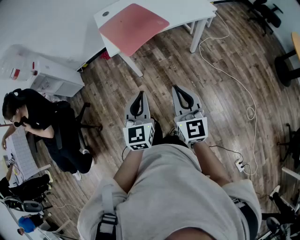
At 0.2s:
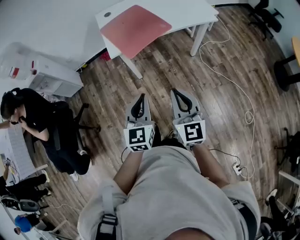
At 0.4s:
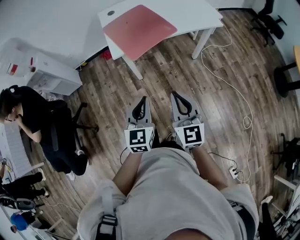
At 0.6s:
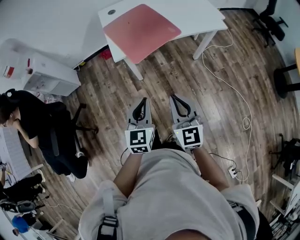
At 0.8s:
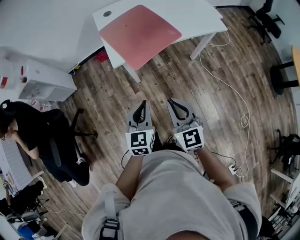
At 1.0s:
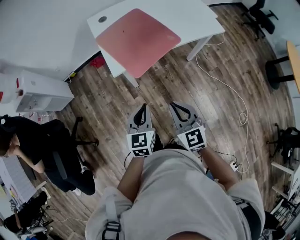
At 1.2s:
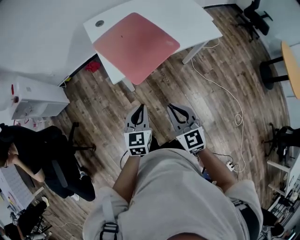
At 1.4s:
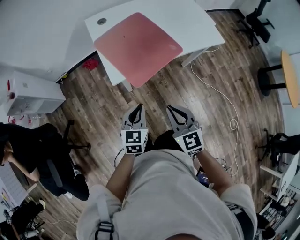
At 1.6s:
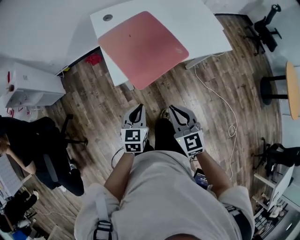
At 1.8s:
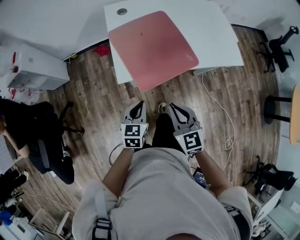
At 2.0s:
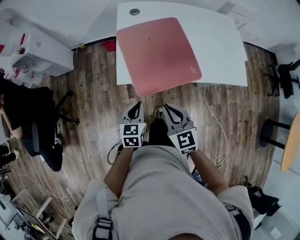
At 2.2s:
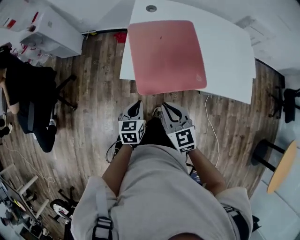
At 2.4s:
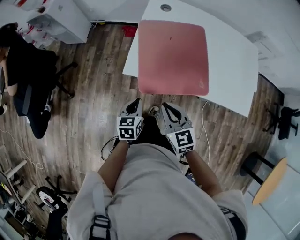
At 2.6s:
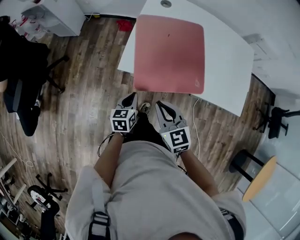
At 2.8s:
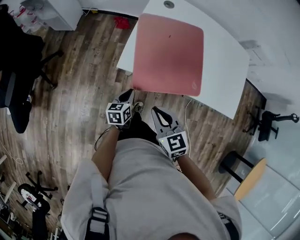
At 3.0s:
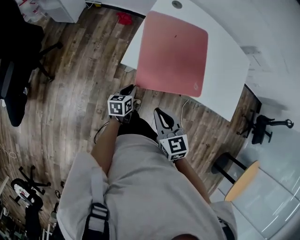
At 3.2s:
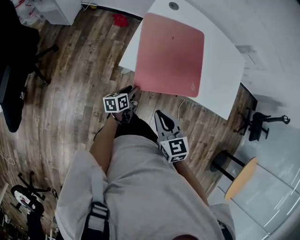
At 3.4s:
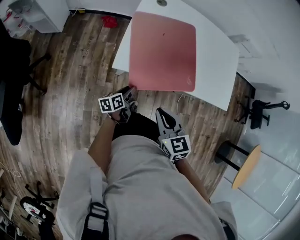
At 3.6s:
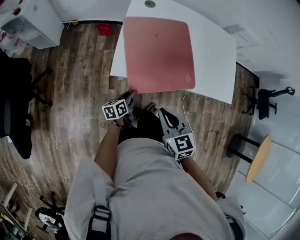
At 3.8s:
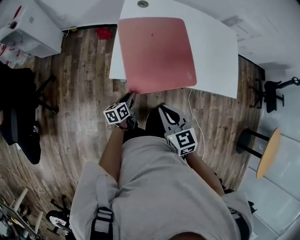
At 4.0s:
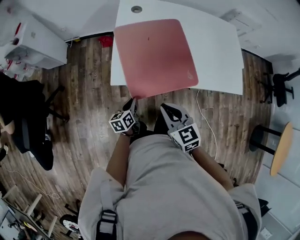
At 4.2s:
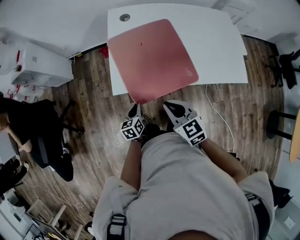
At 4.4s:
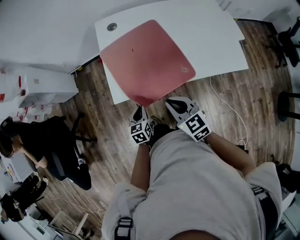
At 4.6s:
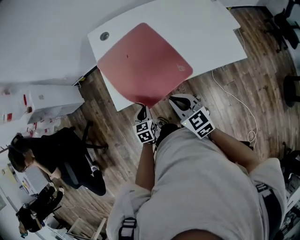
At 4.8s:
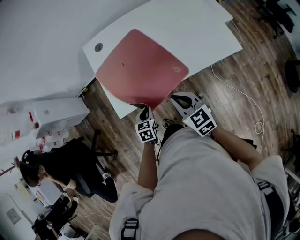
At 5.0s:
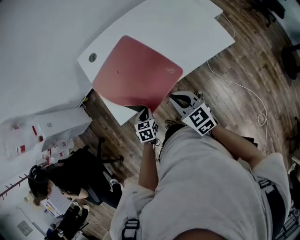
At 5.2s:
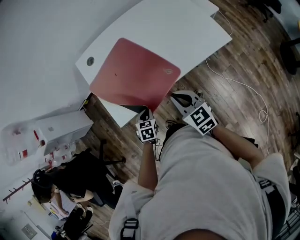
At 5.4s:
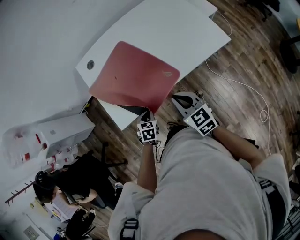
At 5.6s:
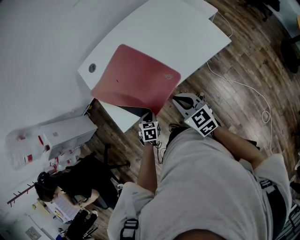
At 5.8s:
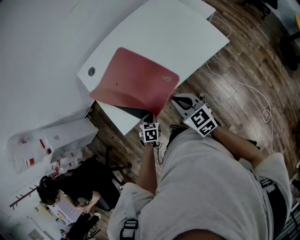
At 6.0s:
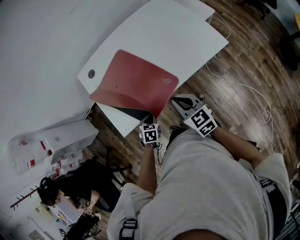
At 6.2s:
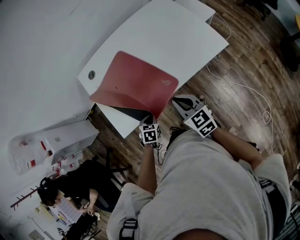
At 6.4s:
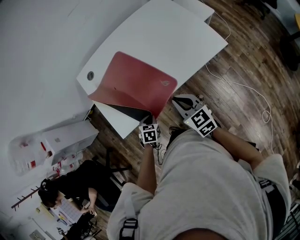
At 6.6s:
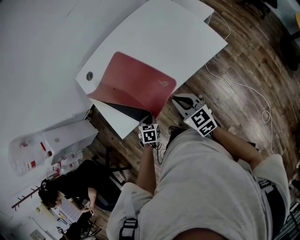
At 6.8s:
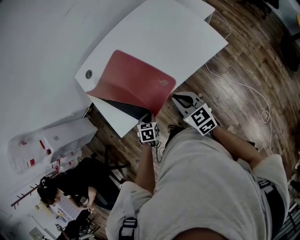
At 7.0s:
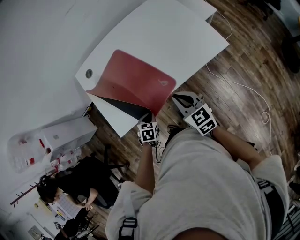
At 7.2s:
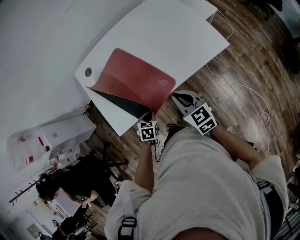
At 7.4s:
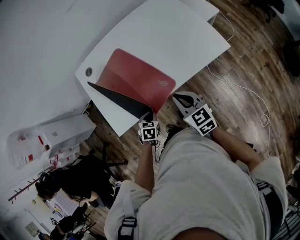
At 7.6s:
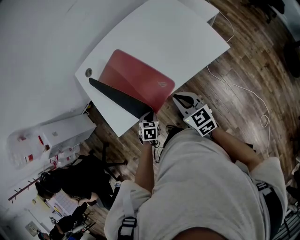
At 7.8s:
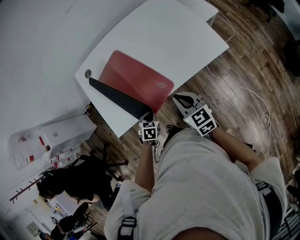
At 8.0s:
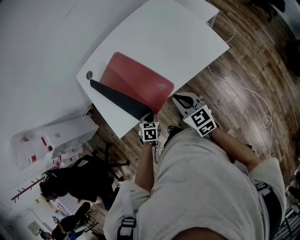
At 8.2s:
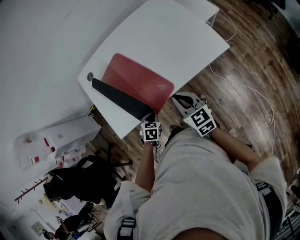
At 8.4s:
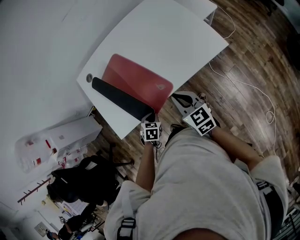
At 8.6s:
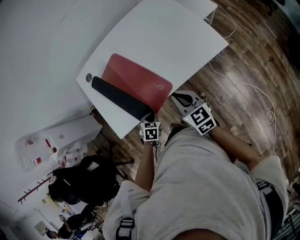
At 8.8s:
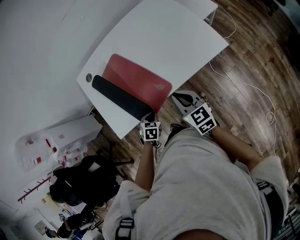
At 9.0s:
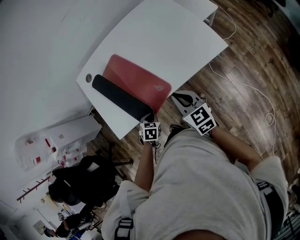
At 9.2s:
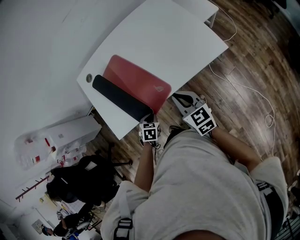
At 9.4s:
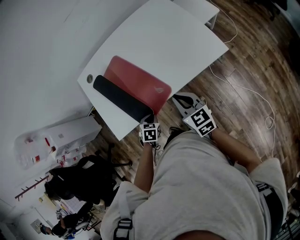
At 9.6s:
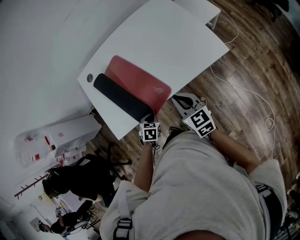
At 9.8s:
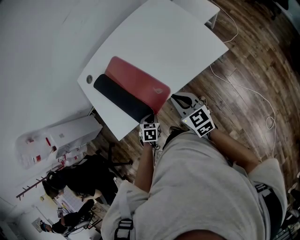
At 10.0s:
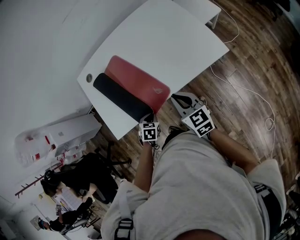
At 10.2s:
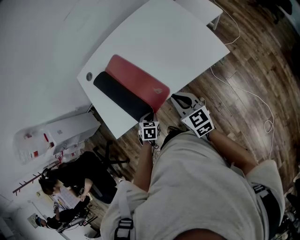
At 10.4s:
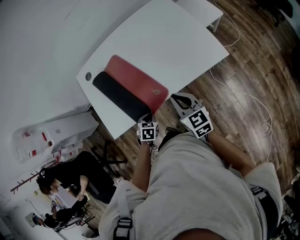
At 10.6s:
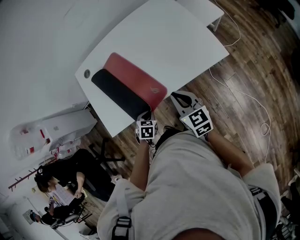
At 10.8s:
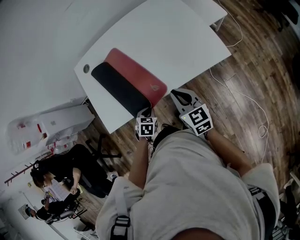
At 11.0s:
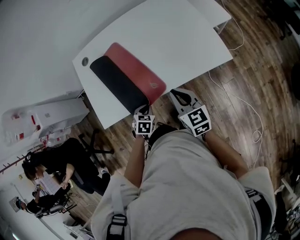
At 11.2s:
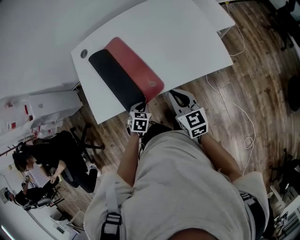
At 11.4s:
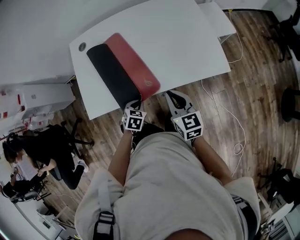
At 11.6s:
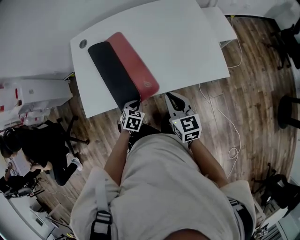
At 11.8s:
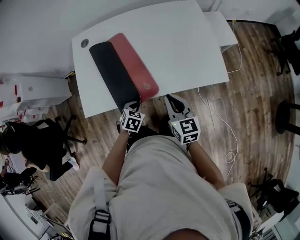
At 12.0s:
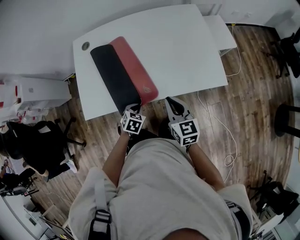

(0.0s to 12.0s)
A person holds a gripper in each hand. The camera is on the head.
0.0s - 1.6s: The right gripper heads forward and to the left, covering about 30 cm, and changes its angle by approximately 30 degrees. Meanwhile the left gripper moves forward, downward and to the left, approximately 30 cm, and changes its angle by some 20 degrees.
1.6s - 3.0s: The right gripper ends up roughly 10 cm from where it was, and swivels approximately 30 degrees. The left gripper moves downward, approximately 15 cm, and rotates around the line of its fingers by about 40 degrees, counterclockwise from behind.
3.0s - 4.4s: The left gripper moves roughly 5 cm, swivels about 30 degrees, and opens and closes again. Meanwhile the right gripper is displaced to the right and forward by roughly 10 cm.
4.4s - 6.0s: Both grippers move to the right, roughly 10 cm. The left gripper turns by roughly 40 degrees. Meanwhile the right gripper turns by some 20 degrees.
6.0s - 7.6s: The right gripper ends up approximately 5 cm from where it was. Meanwhile the left gripper shifts approximately 5 cm to the right.
7.6s - 9.0s: The grippers make only small movements.
9.0s - 10.4s: There are only small adjustments of the grippers.
10.4s - 12.0s: The grippers move only a little.

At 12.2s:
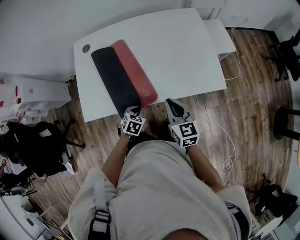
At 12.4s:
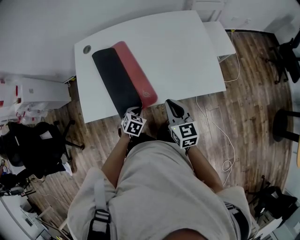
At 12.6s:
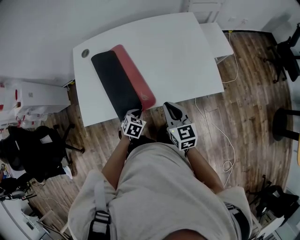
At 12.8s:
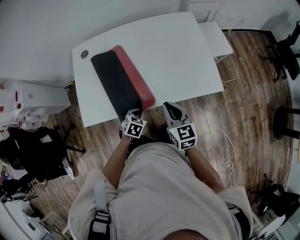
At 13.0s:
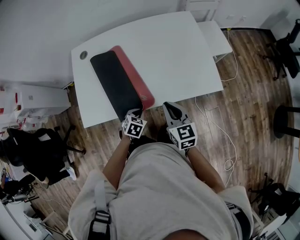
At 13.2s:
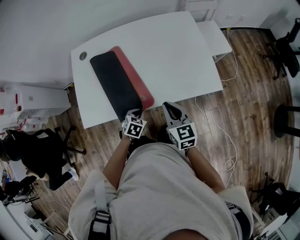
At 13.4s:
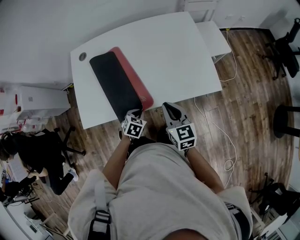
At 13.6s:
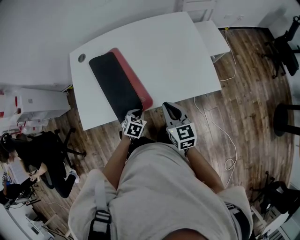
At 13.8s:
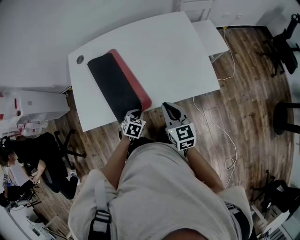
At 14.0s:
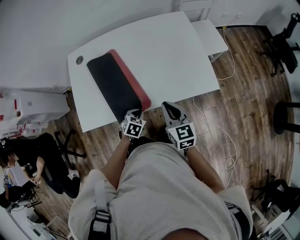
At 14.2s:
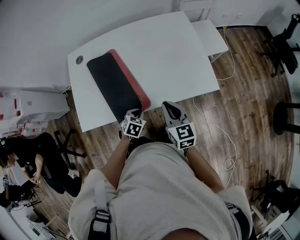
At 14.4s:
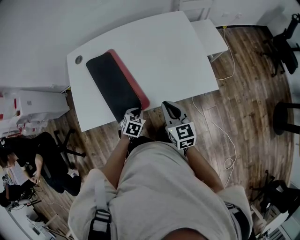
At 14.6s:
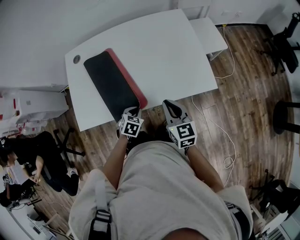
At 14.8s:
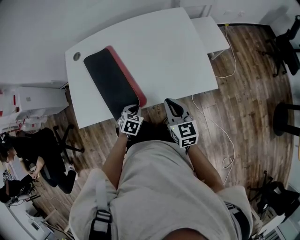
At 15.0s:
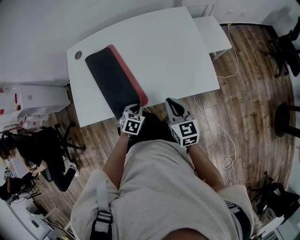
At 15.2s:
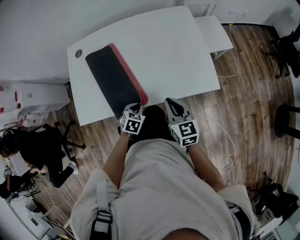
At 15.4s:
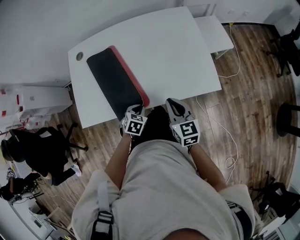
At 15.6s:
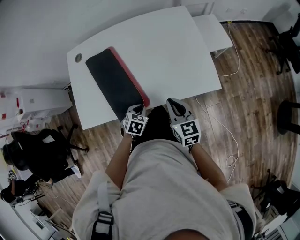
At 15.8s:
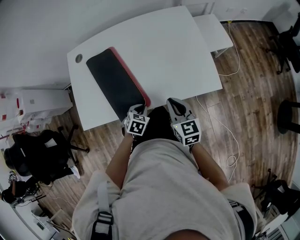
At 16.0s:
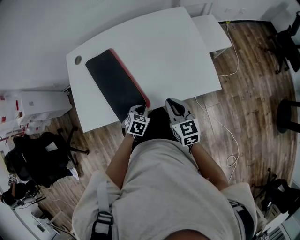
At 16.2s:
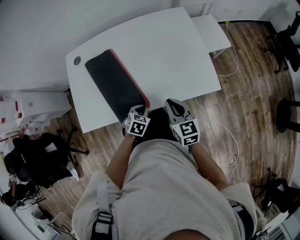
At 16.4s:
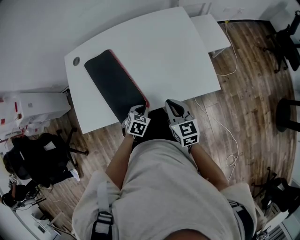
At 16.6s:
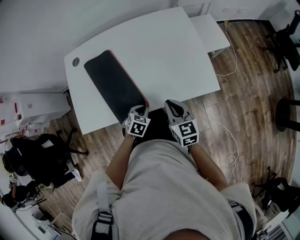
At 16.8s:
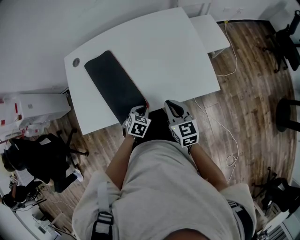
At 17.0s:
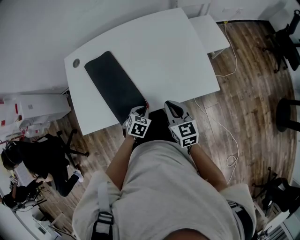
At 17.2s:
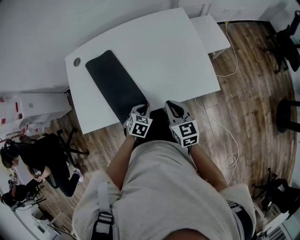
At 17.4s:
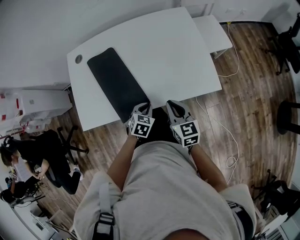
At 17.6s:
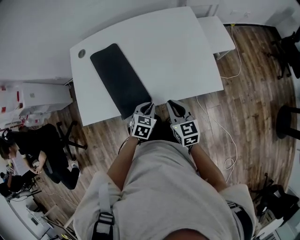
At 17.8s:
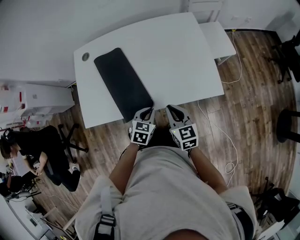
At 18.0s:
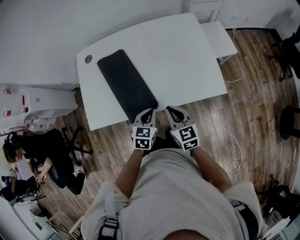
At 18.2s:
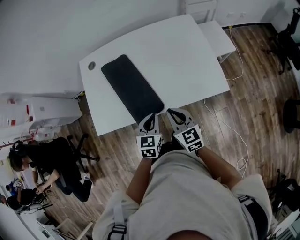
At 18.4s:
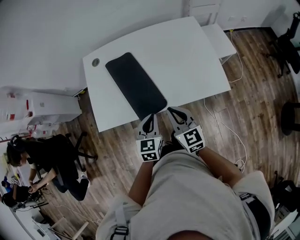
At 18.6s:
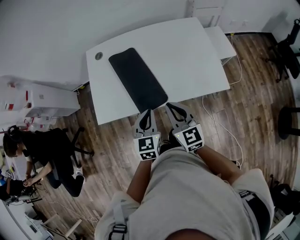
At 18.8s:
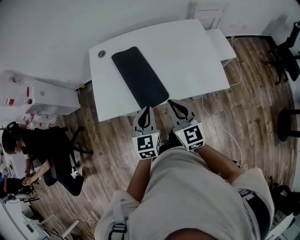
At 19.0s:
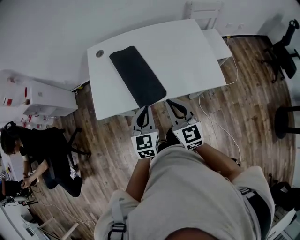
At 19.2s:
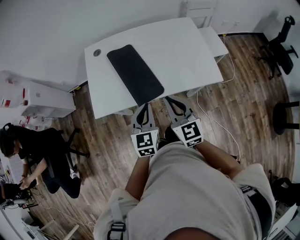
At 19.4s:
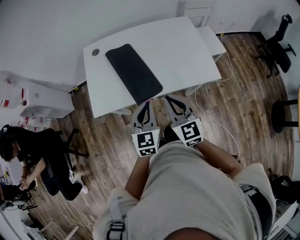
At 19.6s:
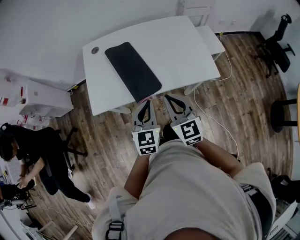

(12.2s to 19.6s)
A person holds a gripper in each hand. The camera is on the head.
12.2s - 13.6s: The grippers stay close to where they were, moving slightly.
13.6s - 16.6s: There are only small adjustments of the grippers.
16.6s - 18.2s: The left gripper moves upward, about 15 cm, and swivels about 30 degrees, while the right gripper travels to the left by about 10 cm.
18.2s - 19.6s: The two grippers go roughly 15 cm upward, backward and to the left.

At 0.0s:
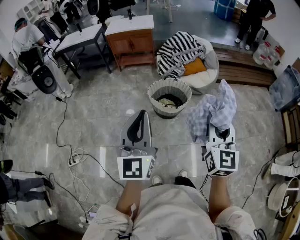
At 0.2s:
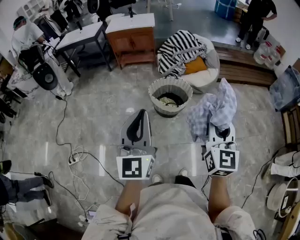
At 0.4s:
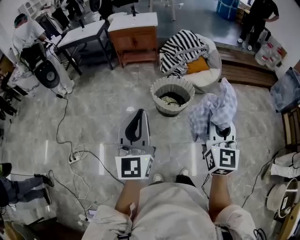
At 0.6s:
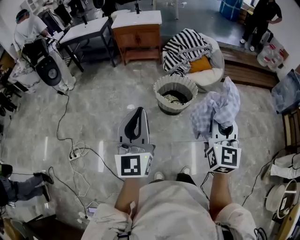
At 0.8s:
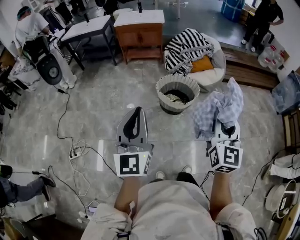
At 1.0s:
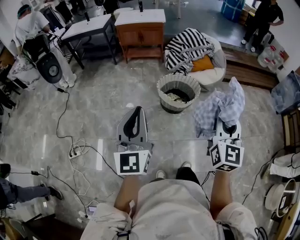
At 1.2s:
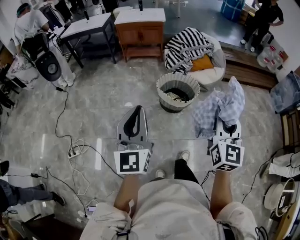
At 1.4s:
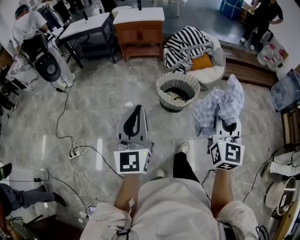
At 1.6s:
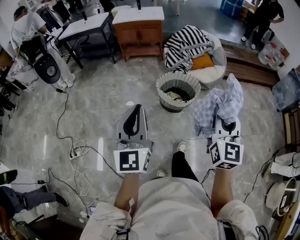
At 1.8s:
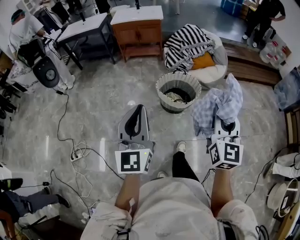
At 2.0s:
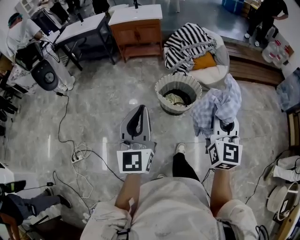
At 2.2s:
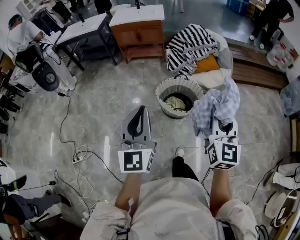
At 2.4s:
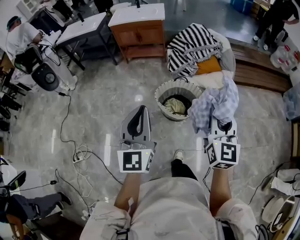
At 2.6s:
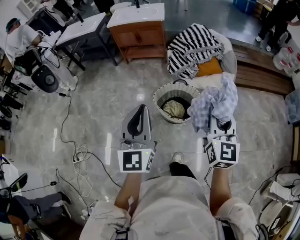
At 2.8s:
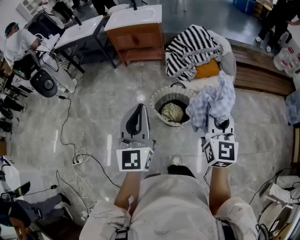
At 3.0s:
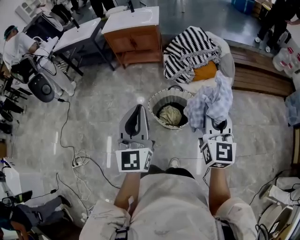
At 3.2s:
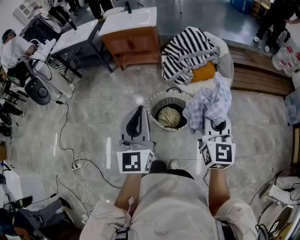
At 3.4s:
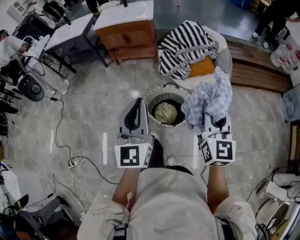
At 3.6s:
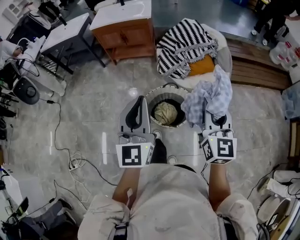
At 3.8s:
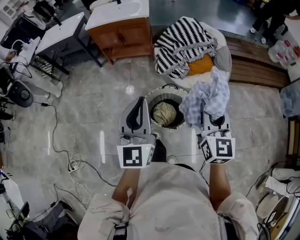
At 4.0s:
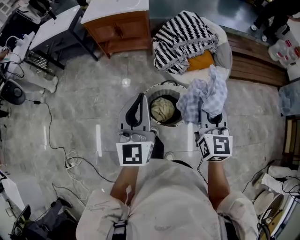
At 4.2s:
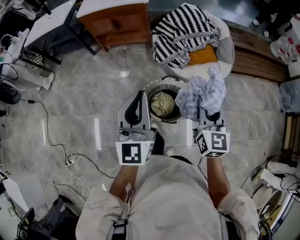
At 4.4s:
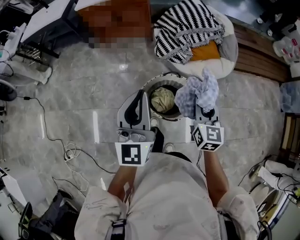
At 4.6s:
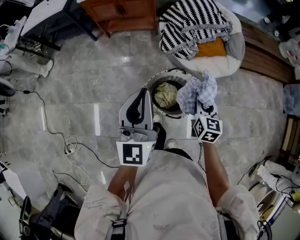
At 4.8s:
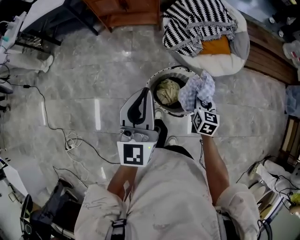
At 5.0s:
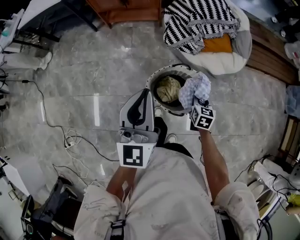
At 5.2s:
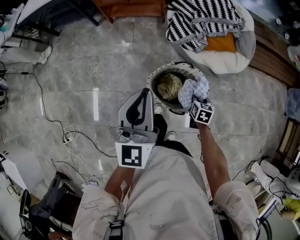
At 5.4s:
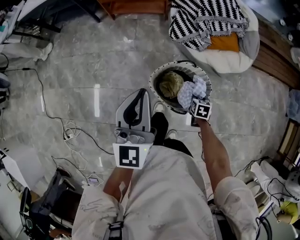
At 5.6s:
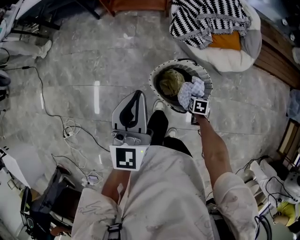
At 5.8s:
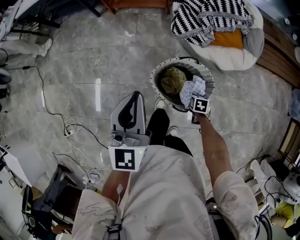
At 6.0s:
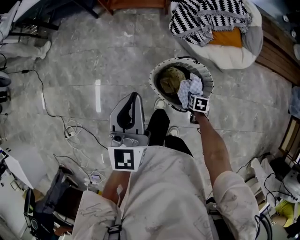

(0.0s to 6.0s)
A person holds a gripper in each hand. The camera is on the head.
0.0s - 1.6s: Both grippers move to the left, roughly 10 cm.
1.6s - 3.0s: The left gripper heads forward and to the right, covering some 35 cm. The right gripper shifts some 35 cm forward.
3.0s - 4.4s: The left gripper shifts some 20 cm forward. Meanwhile the right gripper is displaced forward and downward by roughly 25 cm.
4.4s - 6.0s: The left gripper moves downward and to the left, approximately 15 cm. The right gripper heads downward, covering roughly 40 cm, angles its fingers downward, by some 50 degrees, and opens its fingers.
